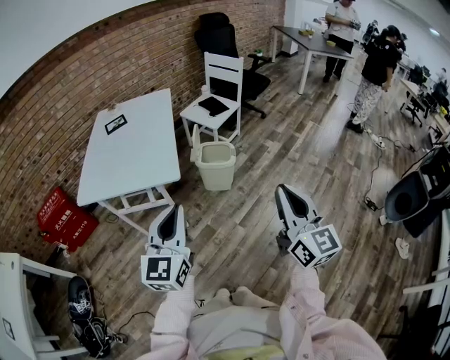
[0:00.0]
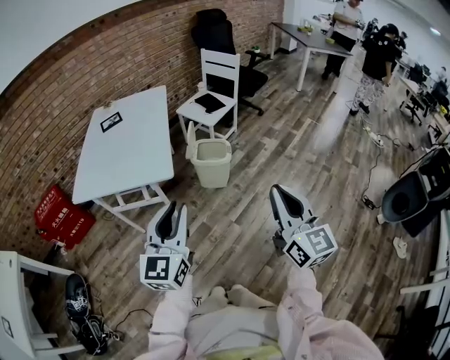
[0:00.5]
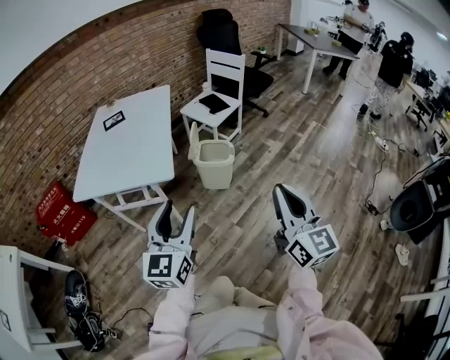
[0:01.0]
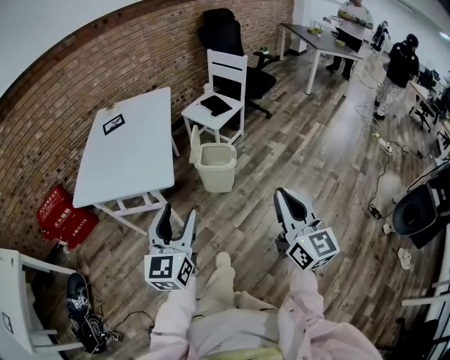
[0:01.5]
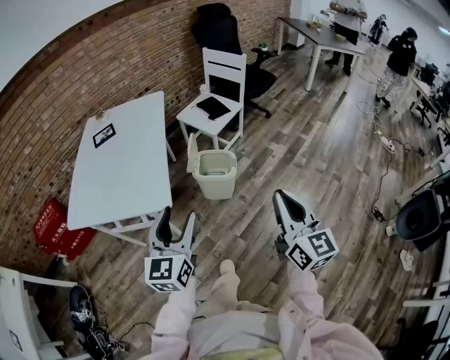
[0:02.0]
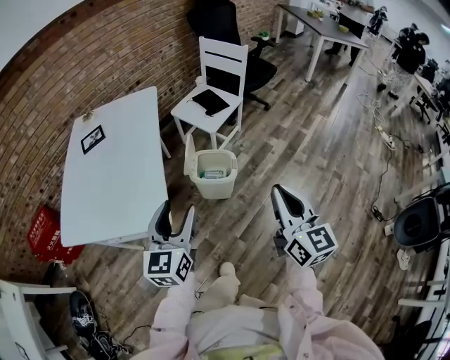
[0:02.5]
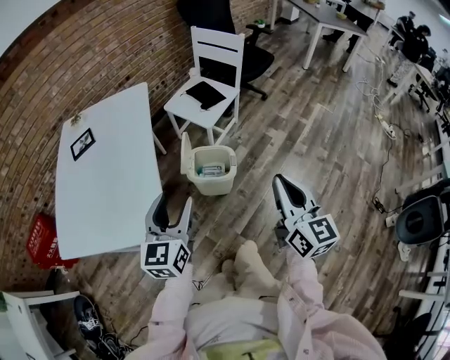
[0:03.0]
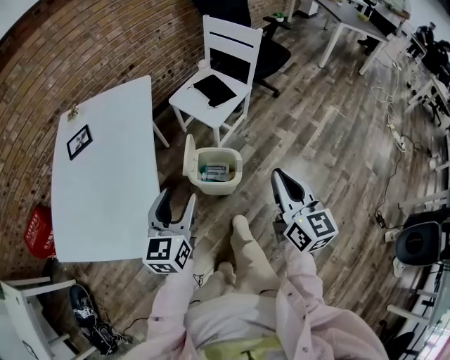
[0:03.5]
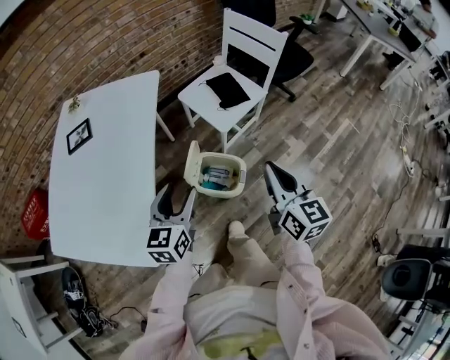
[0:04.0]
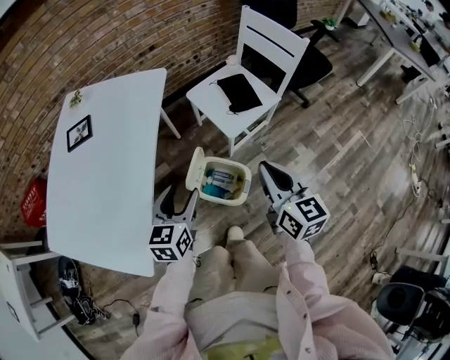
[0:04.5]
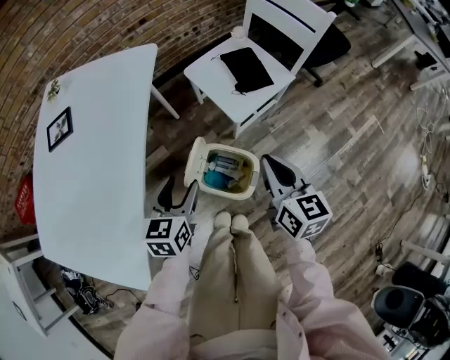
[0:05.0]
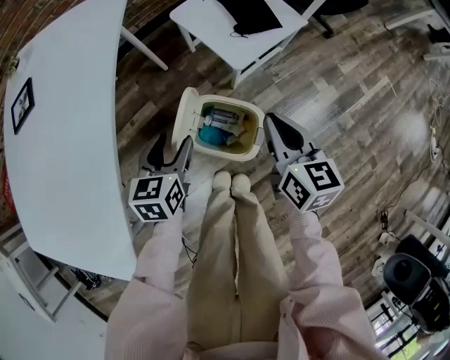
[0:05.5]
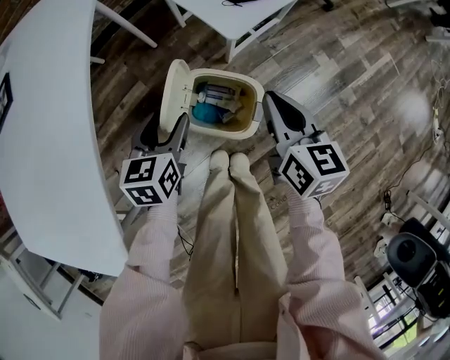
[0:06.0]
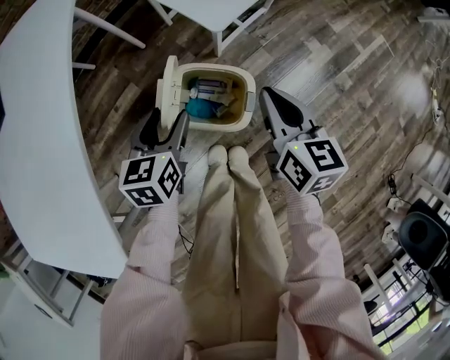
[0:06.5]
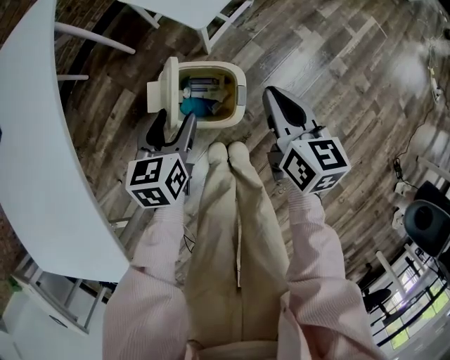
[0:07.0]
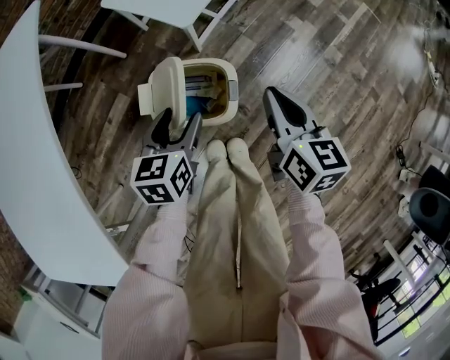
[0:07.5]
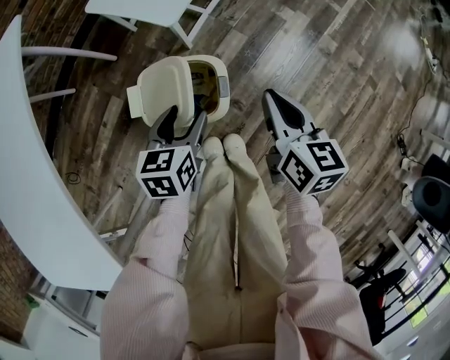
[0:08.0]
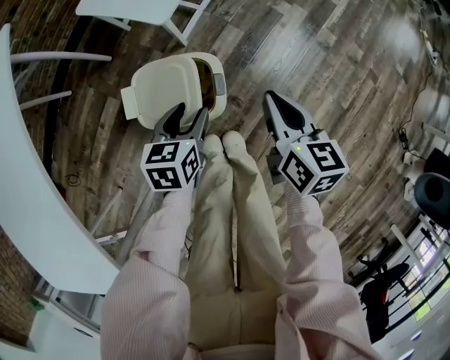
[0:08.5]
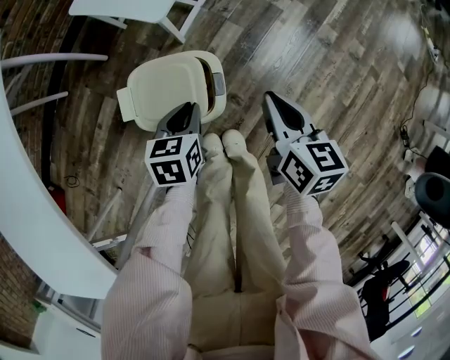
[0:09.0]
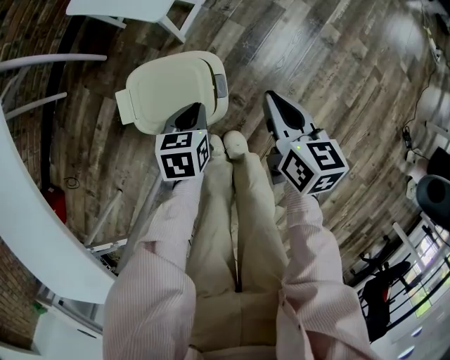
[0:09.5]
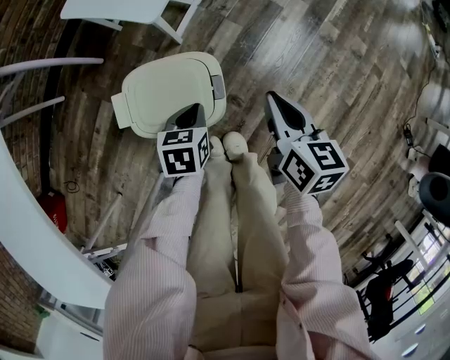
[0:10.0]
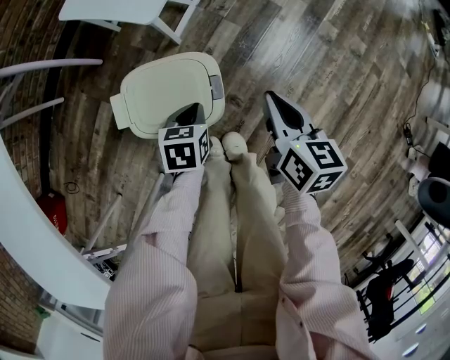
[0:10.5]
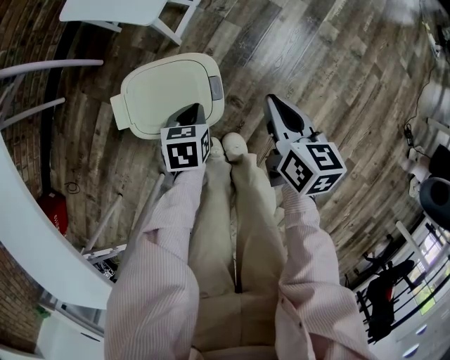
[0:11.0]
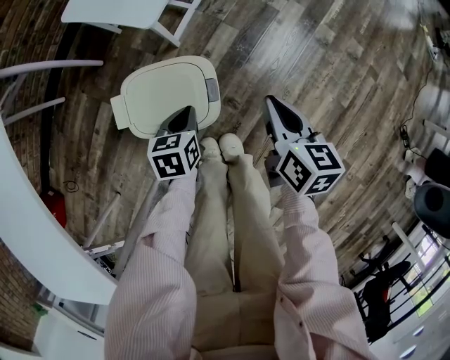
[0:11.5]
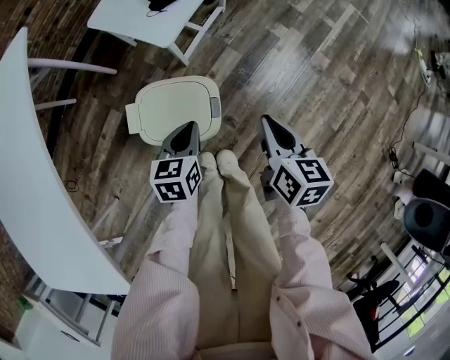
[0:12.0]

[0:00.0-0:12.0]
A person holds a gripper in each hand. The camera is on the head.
0:00.0 to 0:02.0: The grippers both shift forward by roughly 15 cm. The left gripper opens its fingers.
0:02.0 to 0:04.0: The two grippers go approximately 40 cm forward.
0:04.0 to 0:06.0: Both grippers travel together downward and forward, some 30 cm. The left gripper turns by about 20 degrees.
0:06.0 to 0:08.0: The left gripper goes some 15 cm to the right. The right gripper heads to the right and backward, covering approximately 15 cm.
0:08.0 to 0:10.0: The right gripper travels downward by about 10 cm, while the left gripper is displaced downward by roughly 15 cm, and closes its fingers.
0:10.0 to 0:12.0: The left gripper goes some 10 cm upward; the right gripper heads upward, covering about 5 cm.

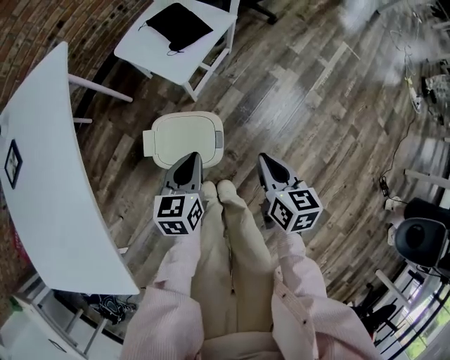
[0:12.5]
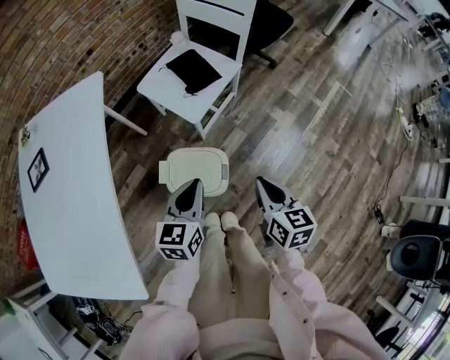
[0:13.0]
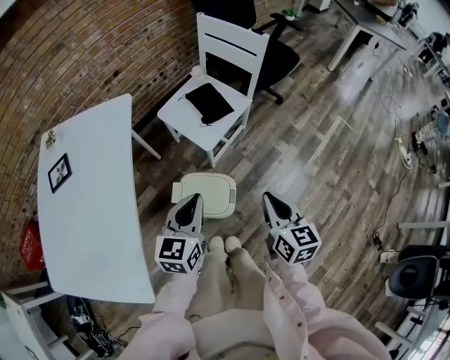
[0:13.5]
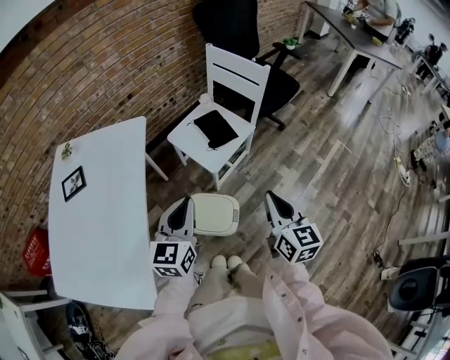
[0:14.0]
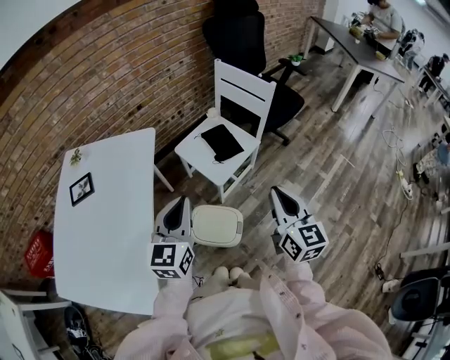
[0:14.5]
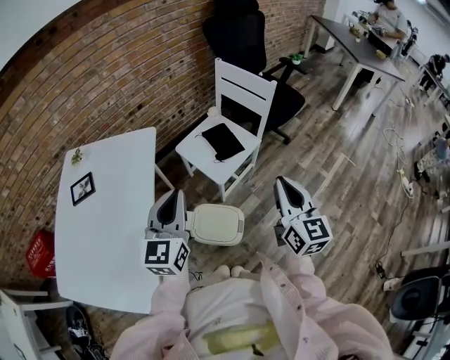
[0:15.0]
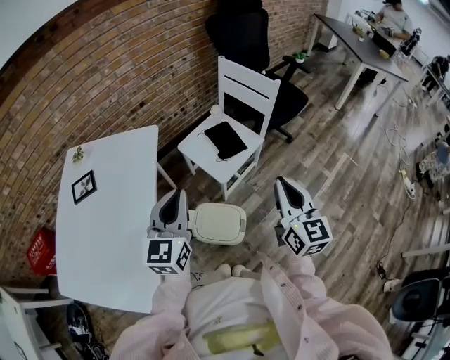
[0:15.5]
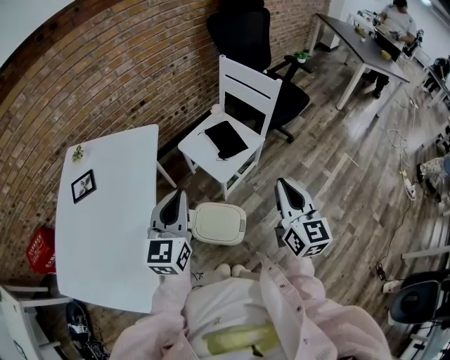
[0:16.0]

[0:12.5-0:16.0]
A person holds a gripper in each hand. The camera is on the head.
0:12.5 to 0:14.5: The two grippers go approximately 30 cm upward. The right gripper changes its angle by about 40 degrees; the left gripper rotates about 30 degrees.
0:14.5 to 0:16.0: The grippers move only a little.

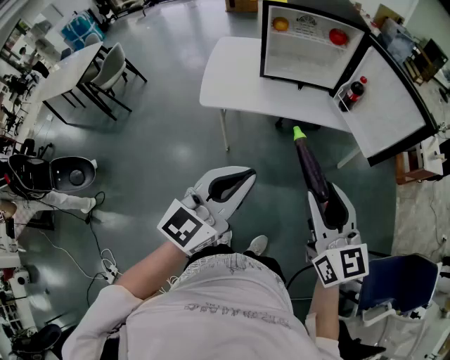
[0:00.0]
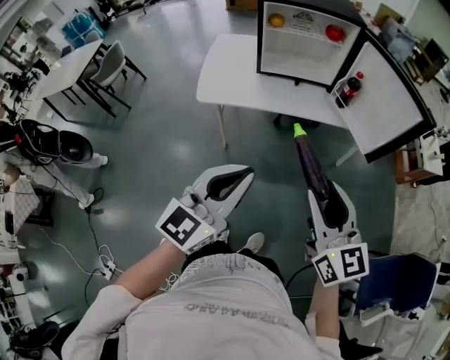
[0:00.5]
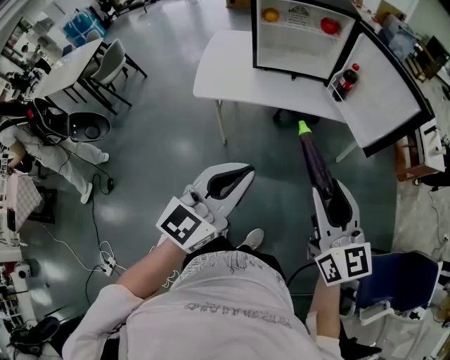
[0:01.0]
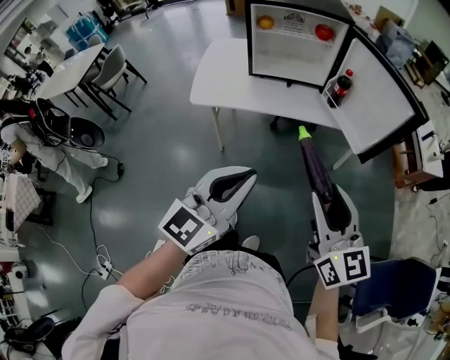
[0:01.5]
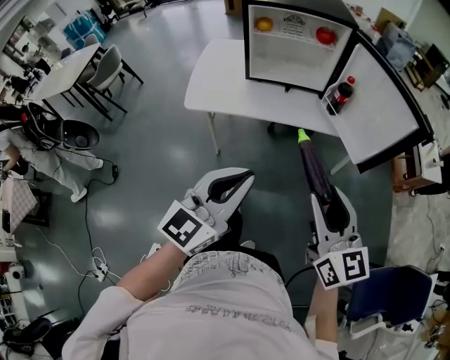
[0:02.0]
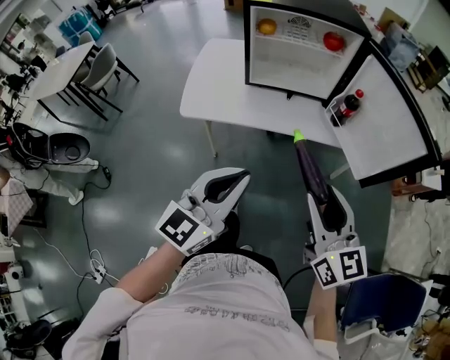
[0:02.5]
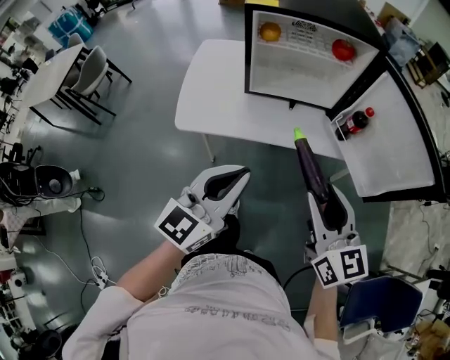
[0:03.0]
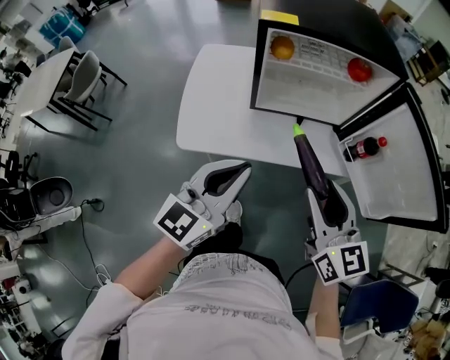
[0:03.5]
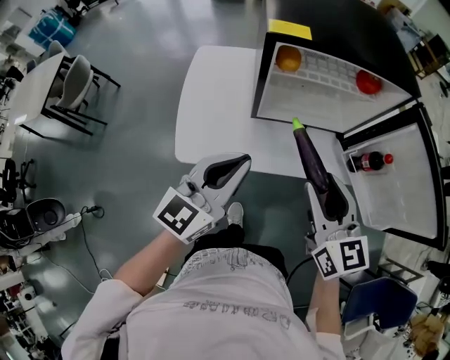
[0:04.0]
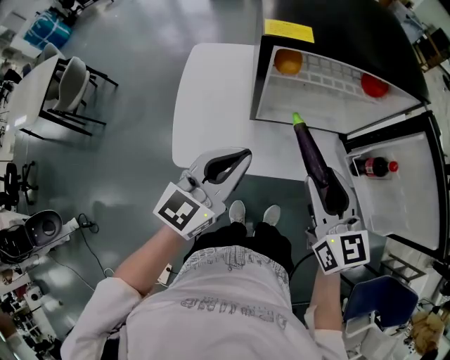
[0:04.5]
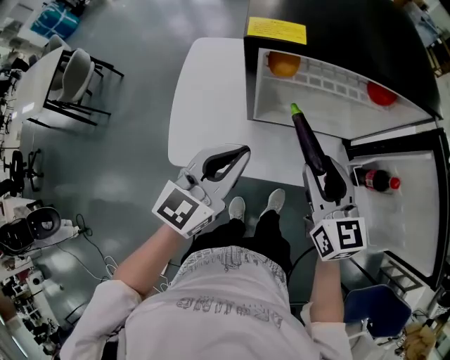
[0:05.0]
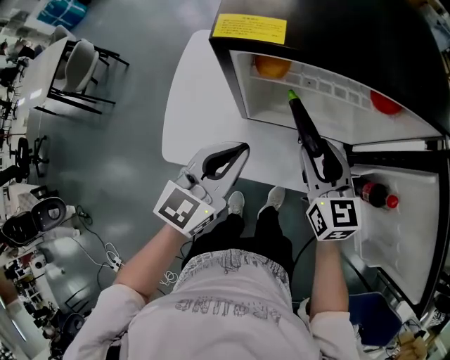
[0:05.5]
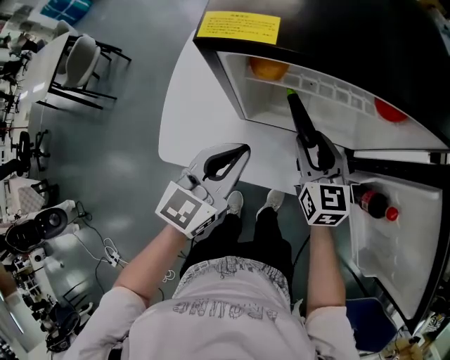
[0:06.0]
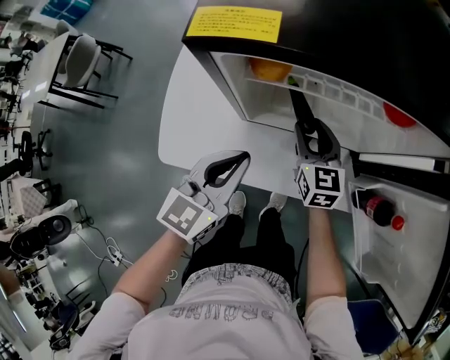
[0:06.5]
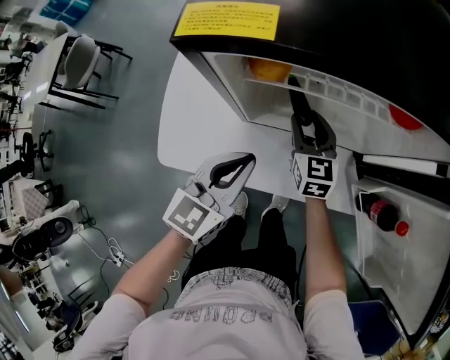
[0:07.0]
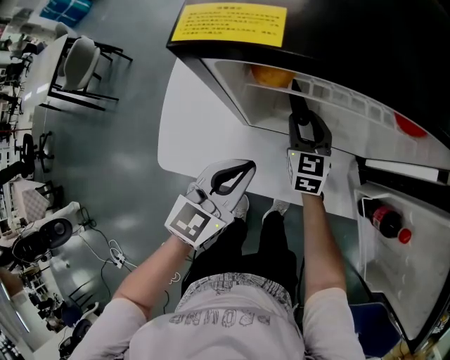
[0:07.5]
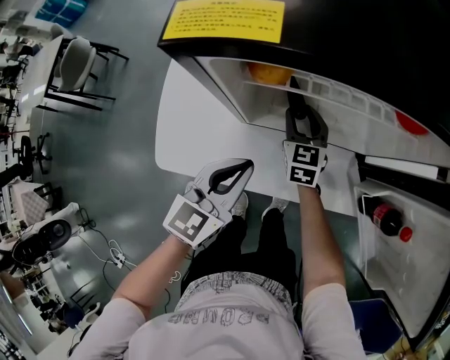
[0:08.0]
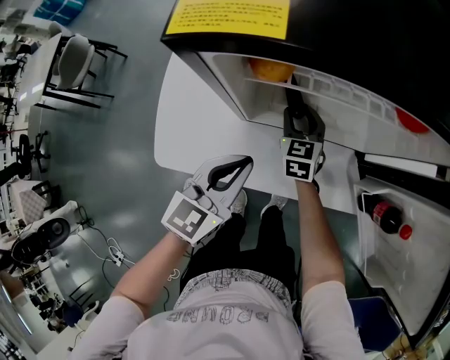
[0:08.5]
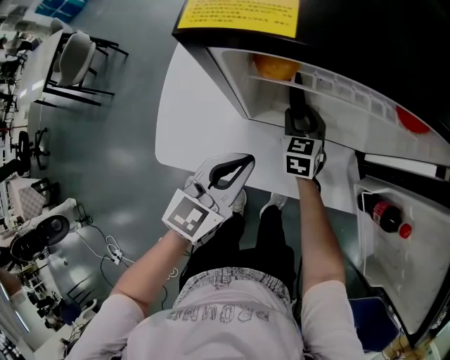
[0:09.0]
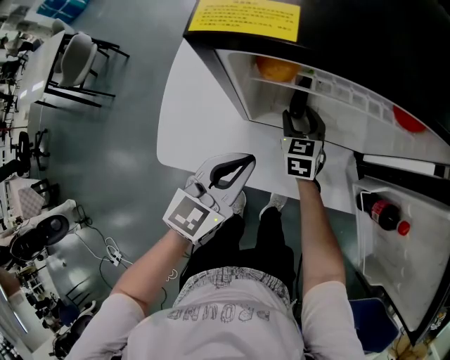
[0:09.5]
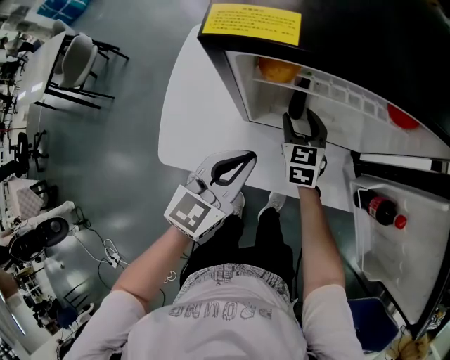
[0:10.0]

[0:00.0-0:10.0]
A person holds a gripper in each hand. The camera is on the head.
0:00.0 to 0:02.0: The two grippers go roughly 10 cm to the right.
0:02.0 to 0:04.0: The two grippers go roughly 35 cm forward and to the left.
0:04.0 to 0:06.0: The left gripper travels forward, downward and to the right by about 15 cm, while the right gripper heads forward and downward, covering about 25 cm.
0:06.0 to 0:08.0: The left gripper is displaced downward by approximately 5 cm. Meanwhile the right gripper is displaced downward, forward and to the left by roughly 15 cm.
0:08.0 to 0:10.0: The grippers make only small movements.

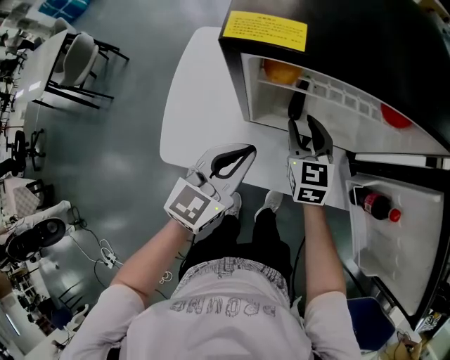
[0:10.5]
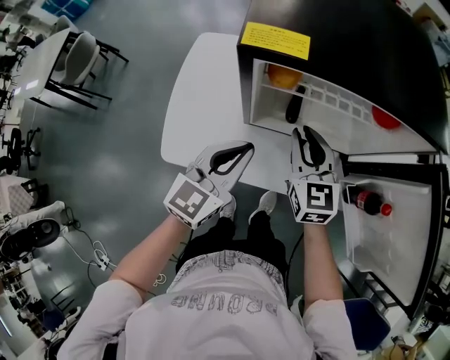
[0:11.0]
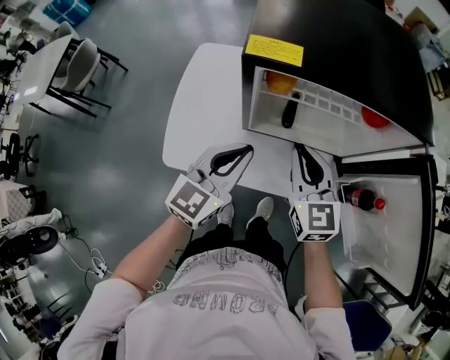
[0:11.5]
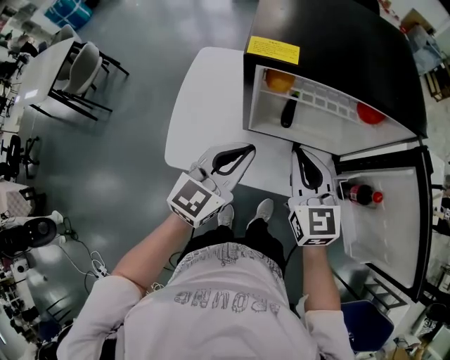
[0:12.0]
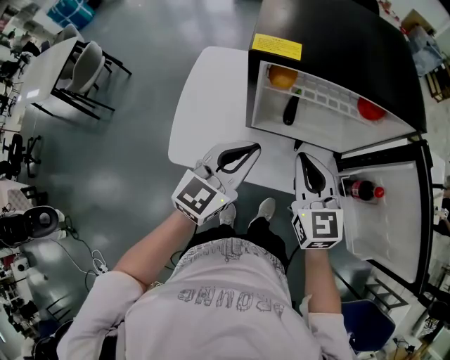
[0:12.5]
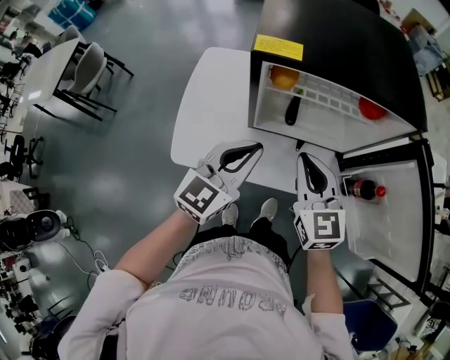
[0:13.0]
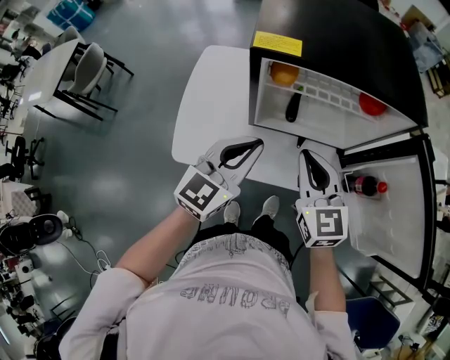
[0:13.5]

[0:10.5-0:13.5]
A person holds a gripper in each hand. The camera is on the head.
0:10.5 to 0:12.0: The right gripper moves upward and backward, approximately 15 cm, and closes its fingers, while the left gripper moves upward, some 5 cm.
0:12.0 to 0:13.5: The grippers make only small movements.
